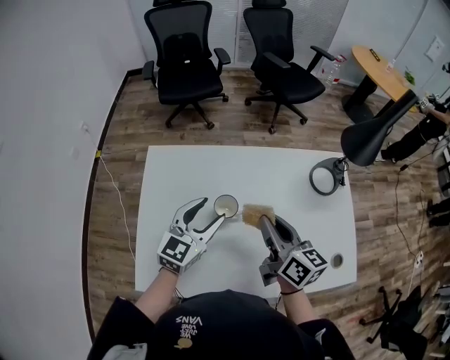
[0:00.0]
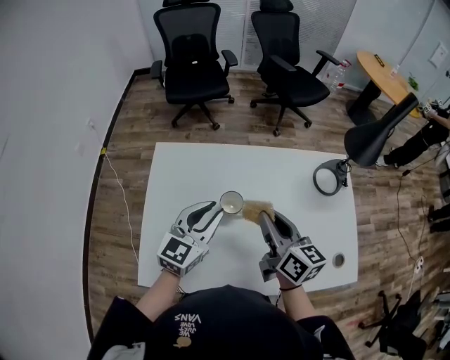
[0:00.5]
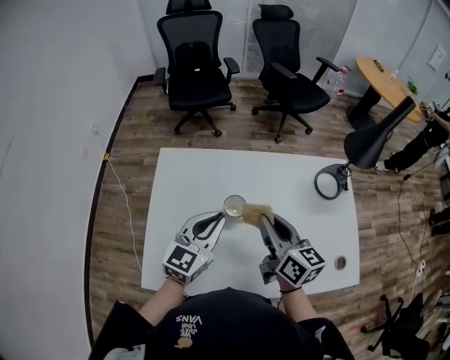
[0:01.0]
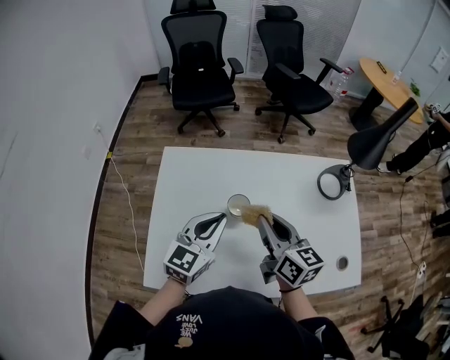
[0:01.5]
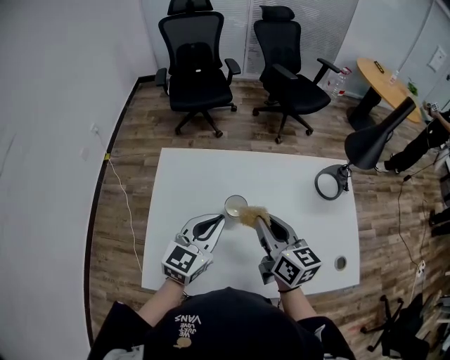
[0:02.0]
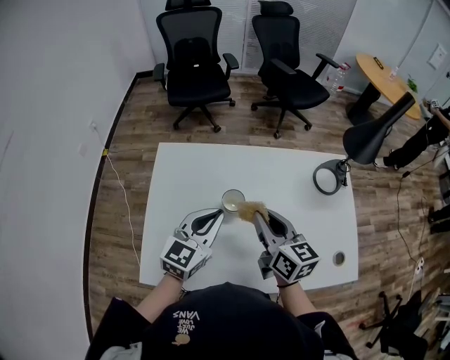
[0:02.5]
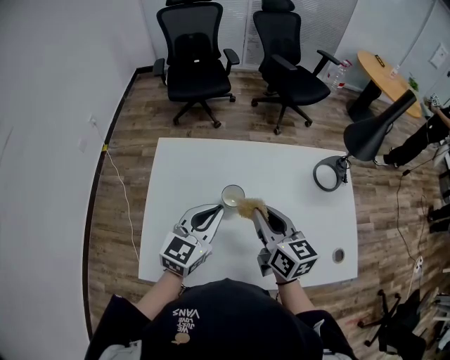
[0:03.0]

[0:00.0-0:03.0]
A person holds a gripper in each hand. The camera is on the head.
0:00.0 to 0:01.5: The left gripper changes place by approximately 5 cm, and closes up.
0:01.5 to 0:03.0: The grippers make only small movements.

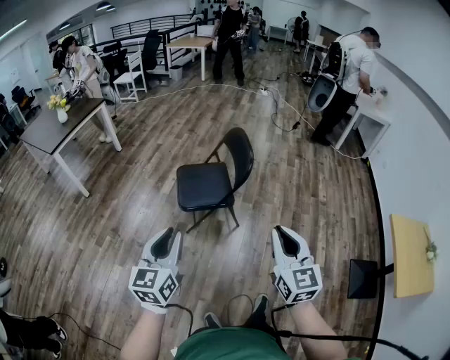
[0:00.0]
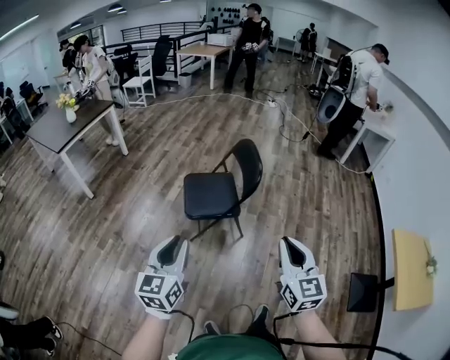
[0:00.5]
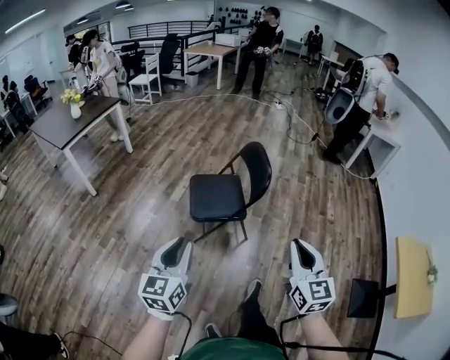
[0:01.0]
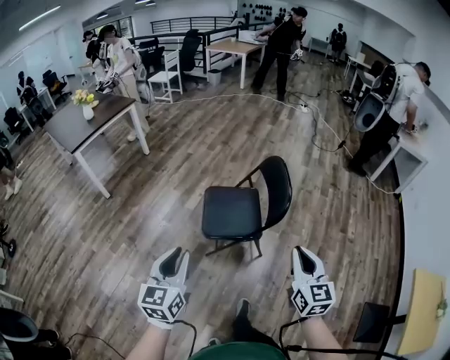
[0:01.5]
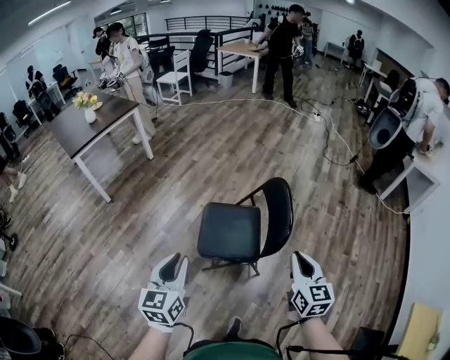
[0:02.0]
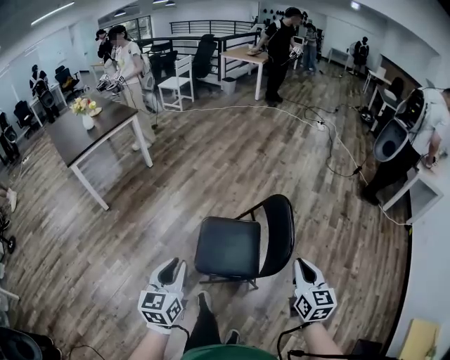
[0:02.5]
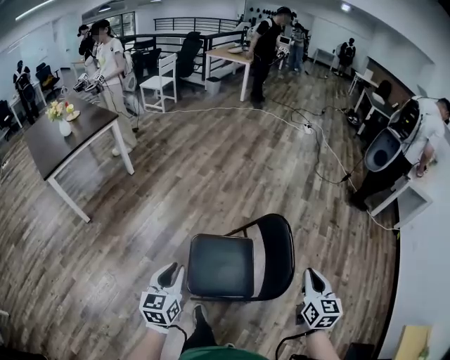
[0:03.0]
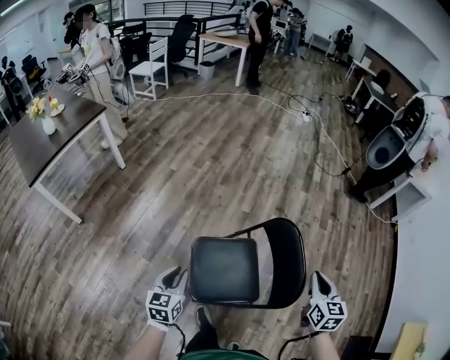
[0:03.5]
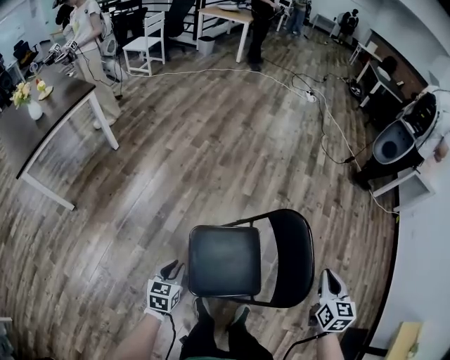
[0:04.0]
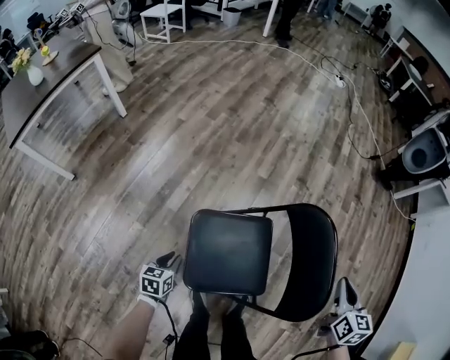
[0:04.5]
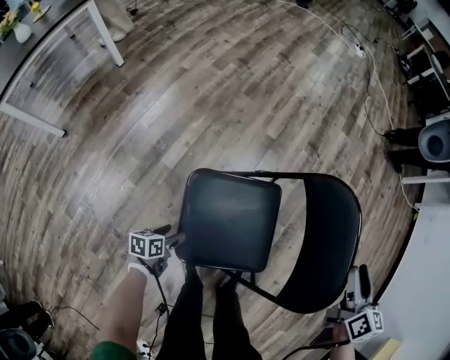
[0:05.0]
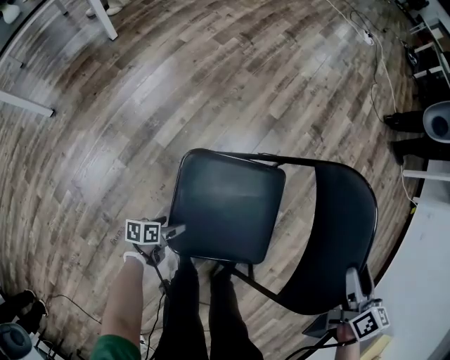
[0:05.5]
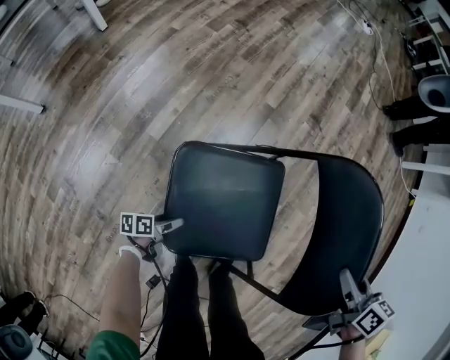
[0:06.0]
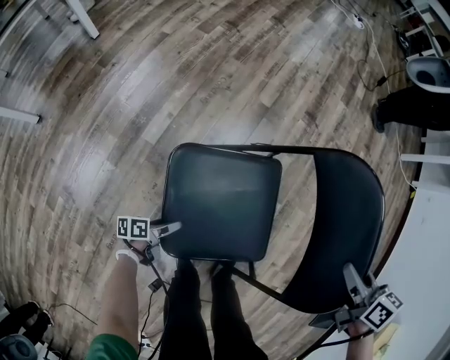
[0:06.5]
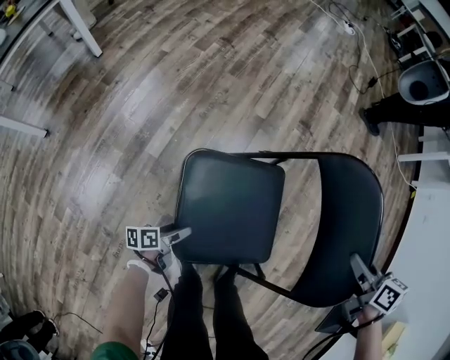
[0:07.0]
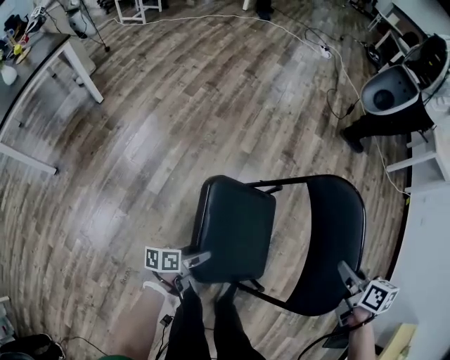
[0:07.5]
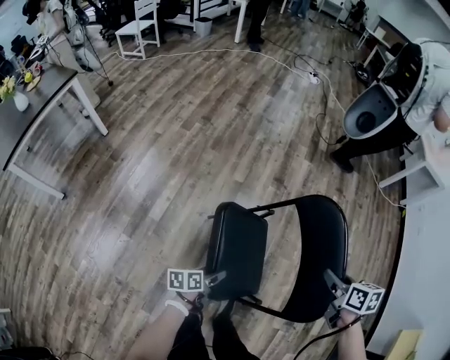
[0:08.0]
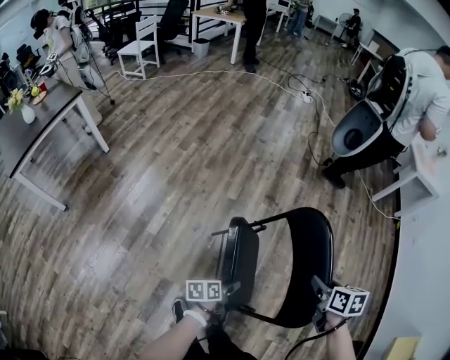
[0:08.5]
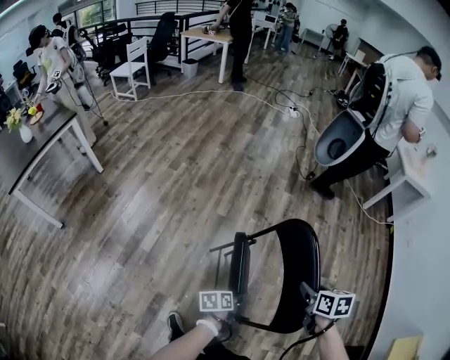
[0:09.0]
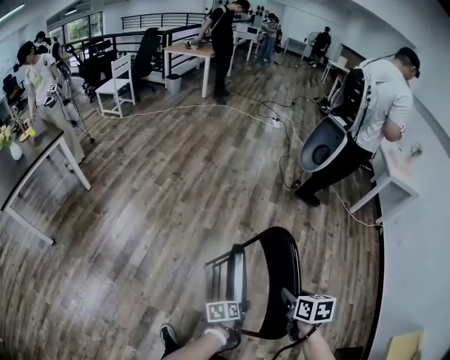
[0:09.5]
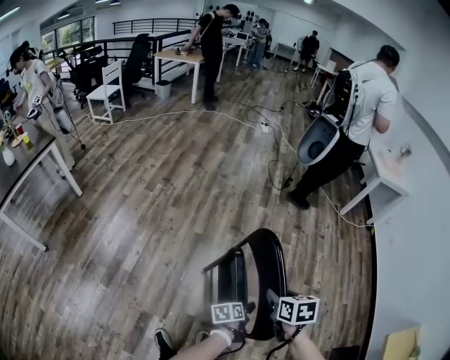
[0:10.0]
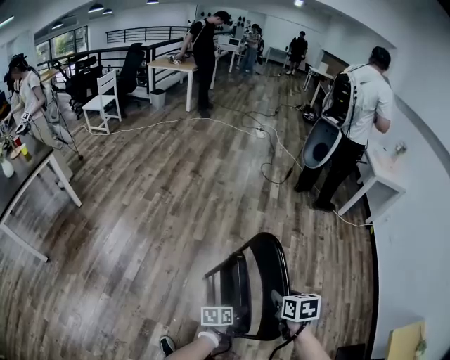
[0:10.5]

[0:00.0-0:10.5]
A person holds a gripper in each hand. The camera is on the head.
0:00.0 to 0:02.0: Both grippers travel together forward, approximately 35 cm.
0:02.0 to 0:04.0: The right gripper heads forward, covering roughly 30 cm, and rotates some 30 degrees. The left gripper moves forward and downward, roughly 50 cm, and swivels approximately 30 degrees.
0:04.0 to 0:06.5: The right gripper goes about 20 cm downward, changes its angle by about 40 degrees, and opens, then closes again. Meanwhile the left gripper is displaced downward by some 40 cm, rolls counterclockwise, seen from behind, by some 50 degrees, and opens.
0:06.5 to 0:08.5: The left gripper heads upward and to the right, covering some 40 cm. The right gripper moves upward and to the right, roughly 20 cm.
0:08.5 to 0:10.5: The left gripper shifts approximately 15 cm to the right.

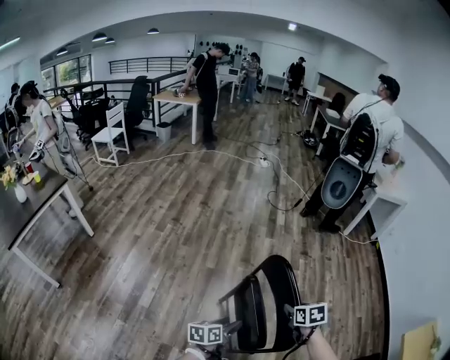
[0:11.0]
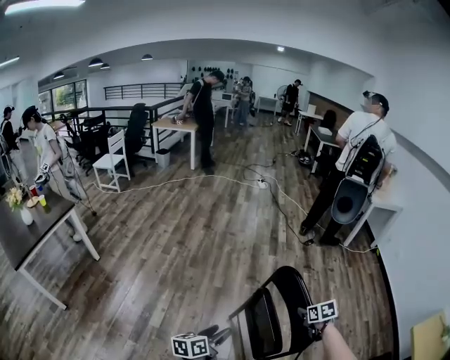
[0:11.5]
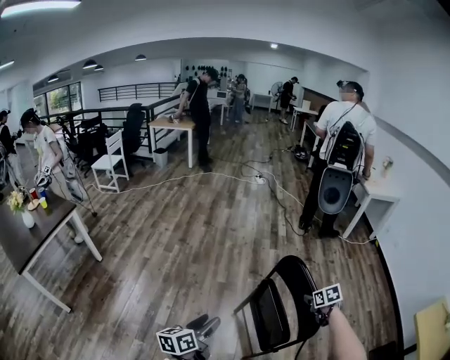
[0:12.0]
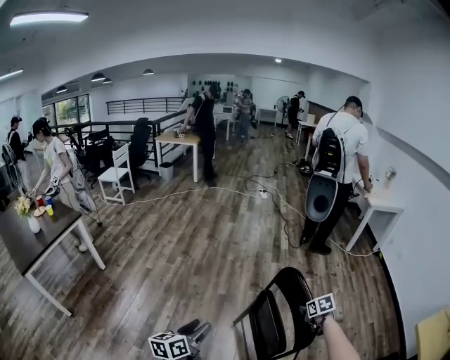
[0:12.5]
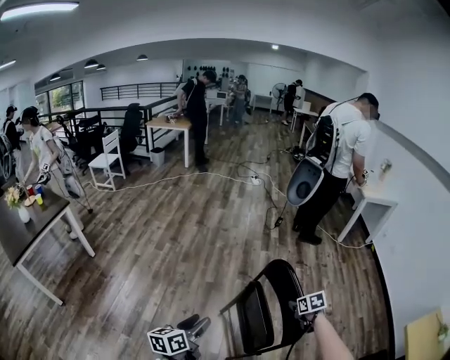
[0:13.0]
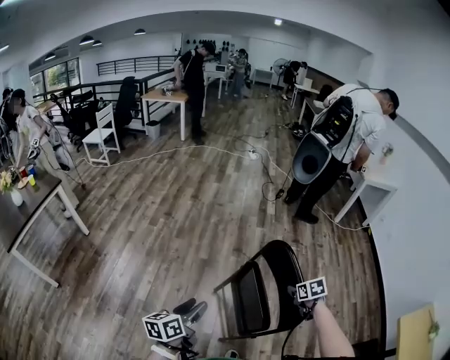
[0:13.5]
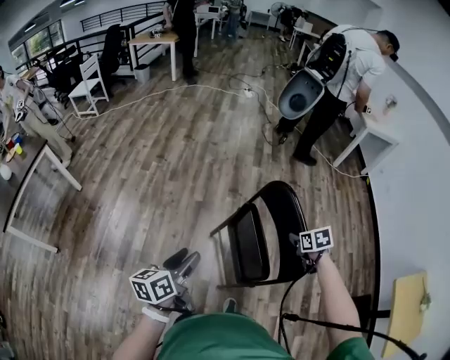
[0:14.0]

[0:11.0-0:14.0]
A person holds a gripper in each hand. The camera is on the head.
0:11.0 to 0:12.5: The left gripper goes about 25 cm to the left, upward and backward, and turns by approximately 20 degrees.
0:12.5 to 0:14.0: The right gripper goes some 5 cm to the right. Meanwhile the left gripper is displaced to the right and forward by about 10 cm.

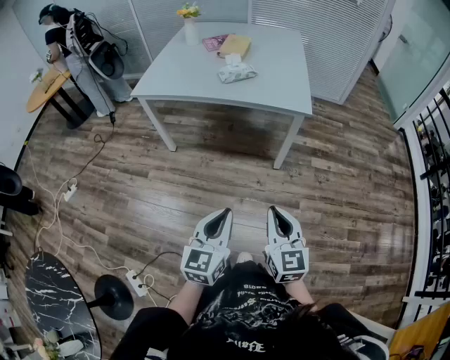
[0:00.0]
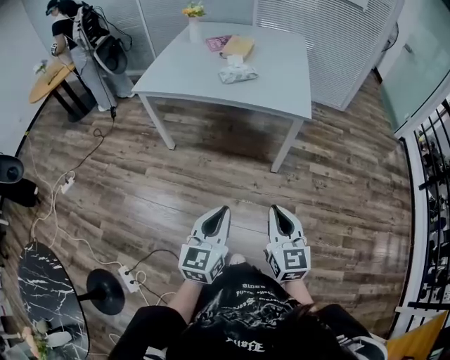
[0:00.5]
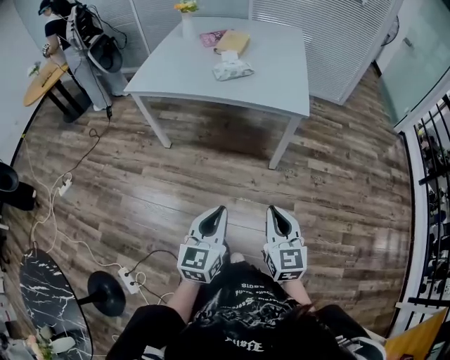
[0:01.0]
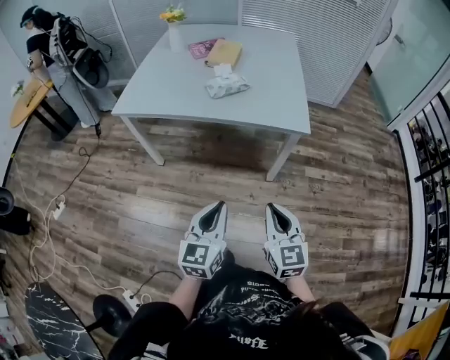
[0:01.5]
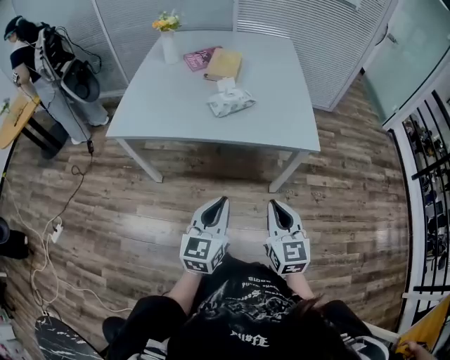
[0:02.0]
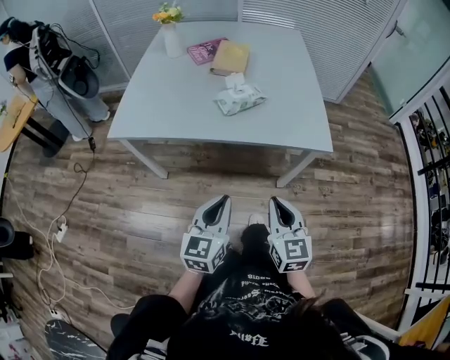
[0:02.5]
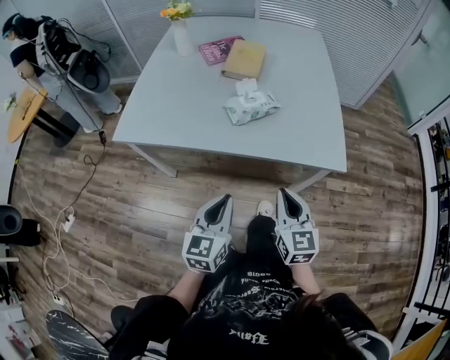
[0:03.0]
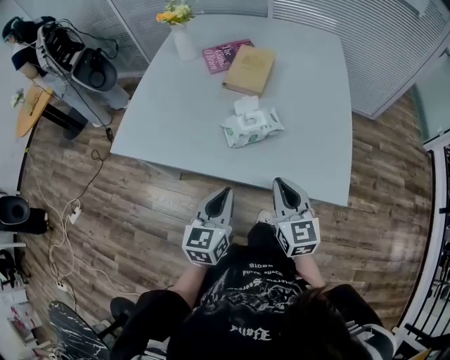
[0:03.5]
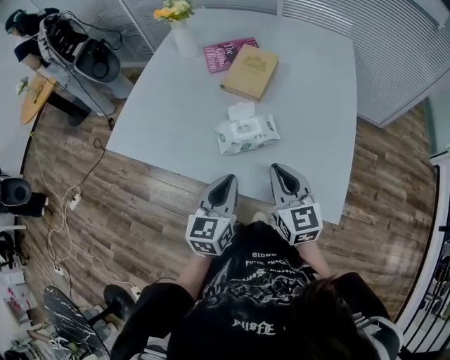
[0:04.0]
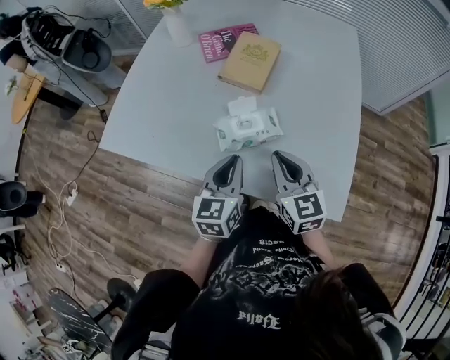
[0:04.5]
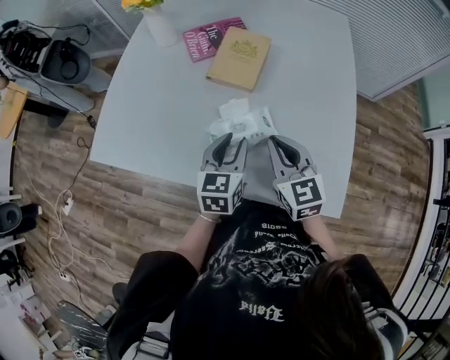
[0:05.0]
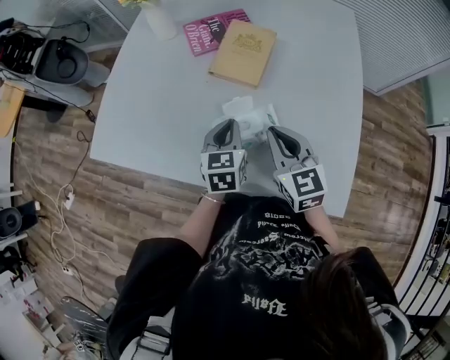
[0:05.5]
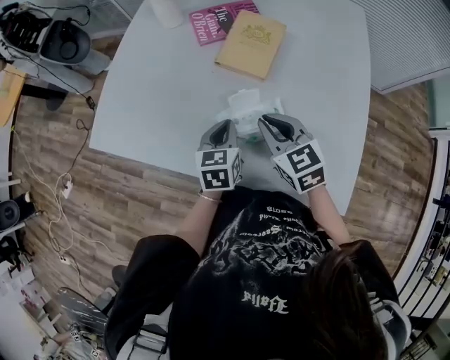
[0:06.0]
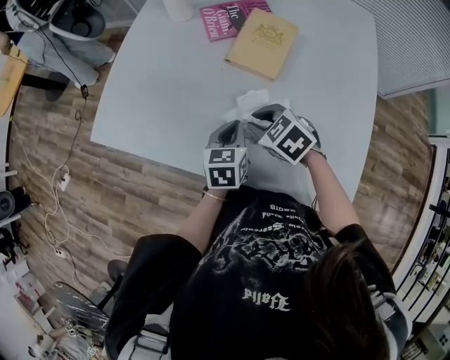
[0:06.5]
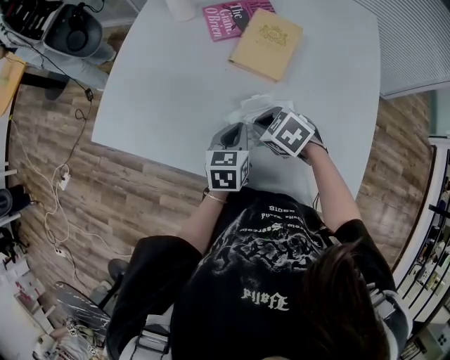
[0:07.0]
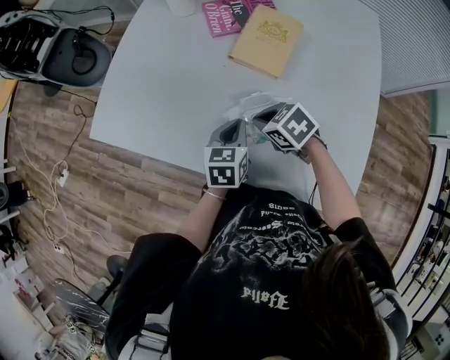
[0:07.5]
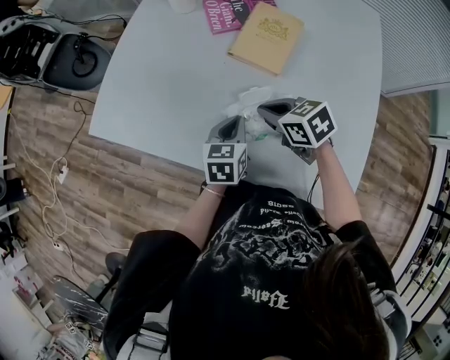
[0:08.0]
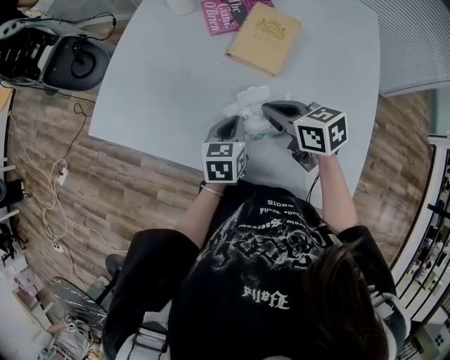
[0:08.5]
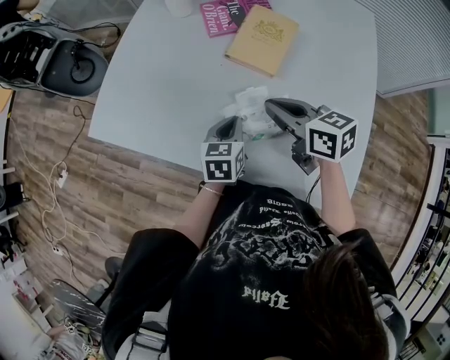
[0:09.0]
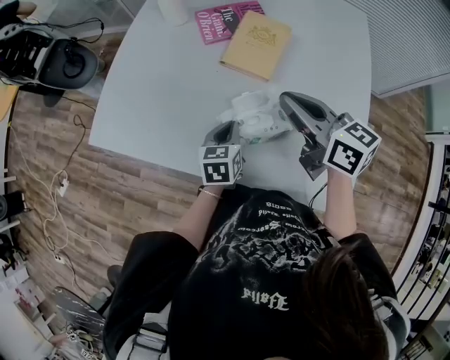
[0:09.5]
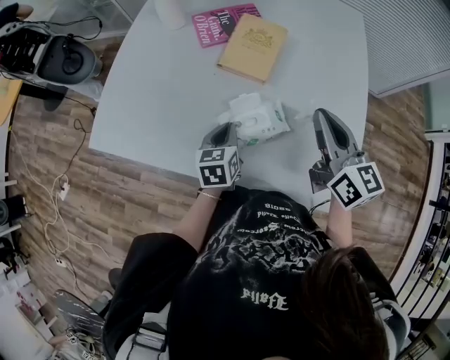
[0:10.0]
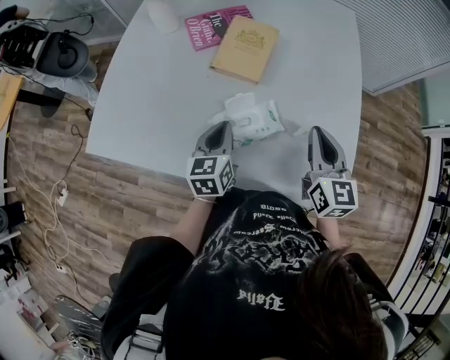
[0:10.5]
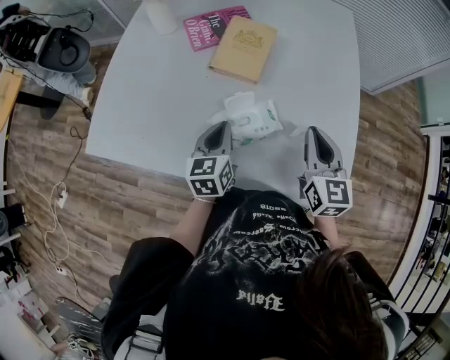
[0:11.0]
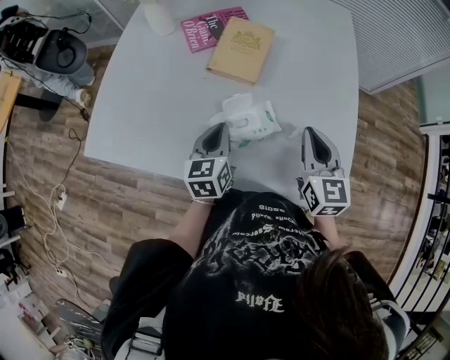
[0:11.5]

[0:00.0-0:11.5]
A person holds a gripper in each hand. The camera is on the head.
0:00.0 to 0:02.0: Both grippers travel together forward, approximately 25 cm.
0:02.0 to 0:04.0: The two grippers go some 35 cm forward. The right gripper swivels about 20 degrees.
0:04.0 to 0:06.0: The left gripper moves forward and downward, about 20 cm, and opens and closes again, while the right gripper moves forward, some 15 cm, and swivels about 20 degrees.
0:06.0 to 0:07.5: The right gripper travels downward by some 10 cm, and changes its angle by approximately 40 degrees.
0:07.5 to 0:09.5: The right gripper goes some 20 cm upward, and tips its fingers upward by roughly 40 degrees.
0:09.5 to 0:11.5: The right gripper shifts some 15 cm to the right, backward and downward, and turns by some 40 degrees.
